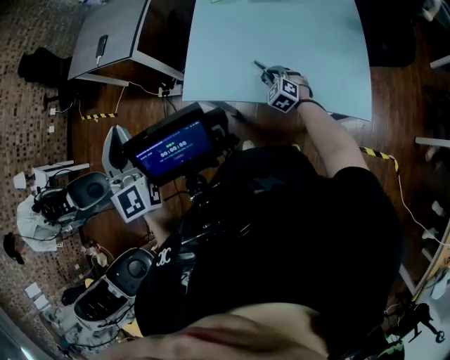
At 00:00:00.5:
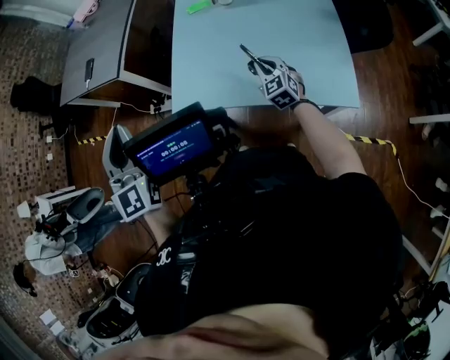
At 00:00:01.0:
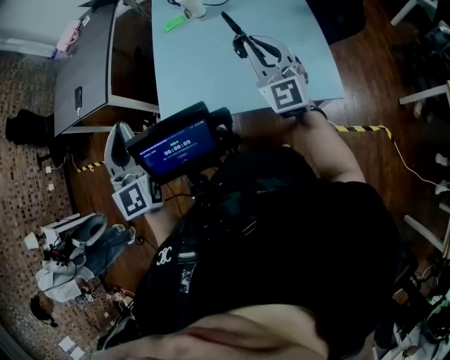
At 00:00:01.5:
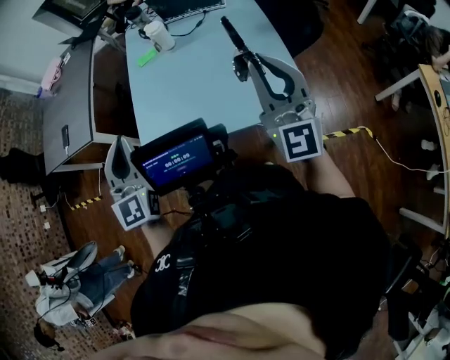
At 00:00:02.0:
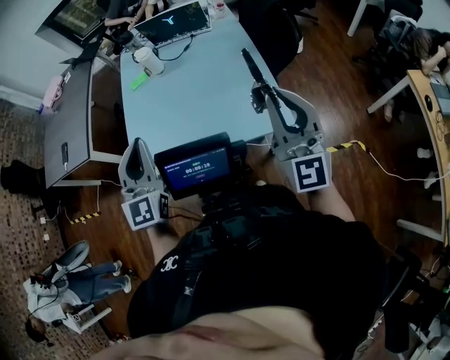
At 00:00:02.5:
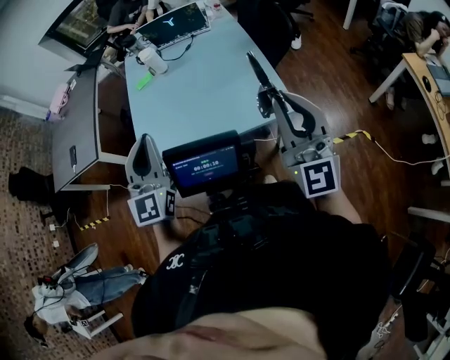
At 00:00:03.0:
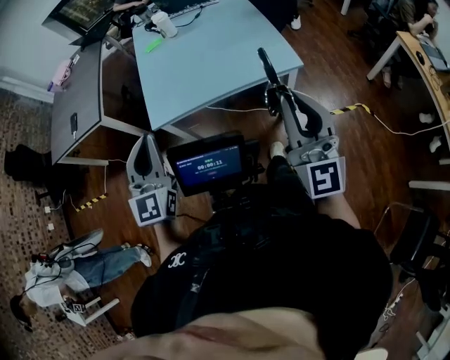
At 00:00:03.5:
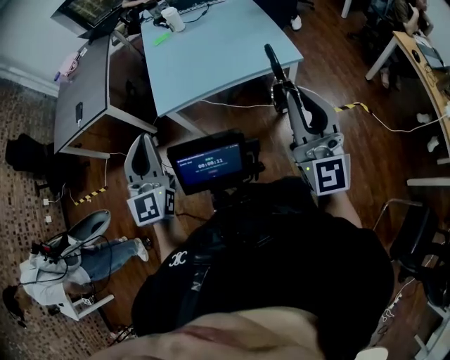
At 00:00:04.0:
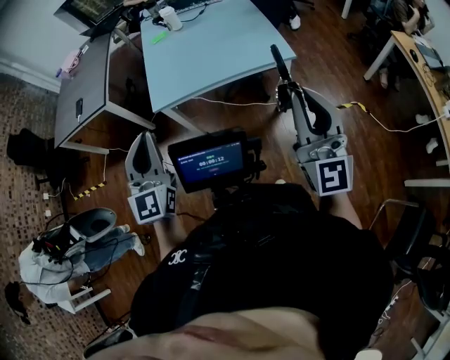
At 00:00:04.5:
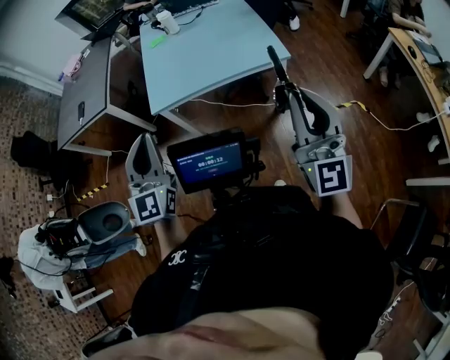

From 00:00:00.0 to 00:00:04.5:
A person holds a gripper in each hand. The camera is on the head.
From 00:00:00.0 to 00:00:02.0: The left gripper changes place by roughly 30 cm, and rotates some 30 degrees. The right gripper heads upward, covering approximately 40 cm, and tips its fingers upward by roughly 60 degrees.
From 00:00:02.0 to 00:00:04.5: Both grippers travel together backward, about 40 cm.

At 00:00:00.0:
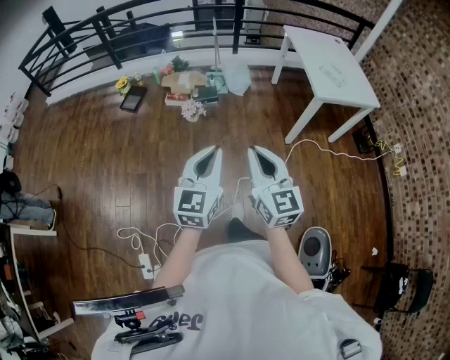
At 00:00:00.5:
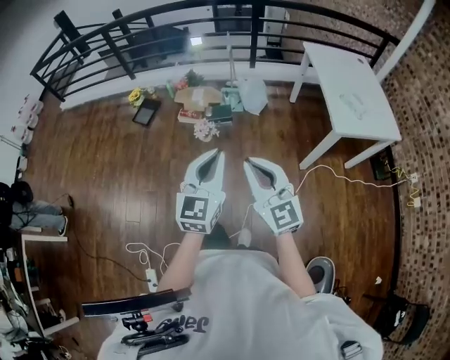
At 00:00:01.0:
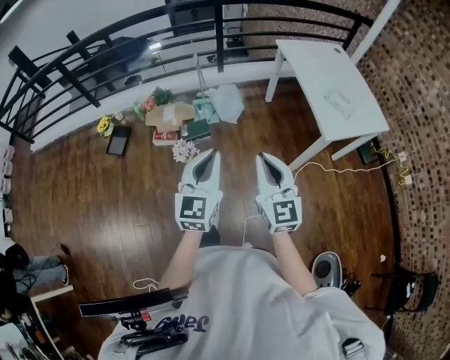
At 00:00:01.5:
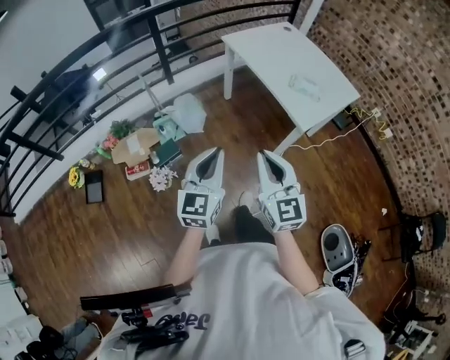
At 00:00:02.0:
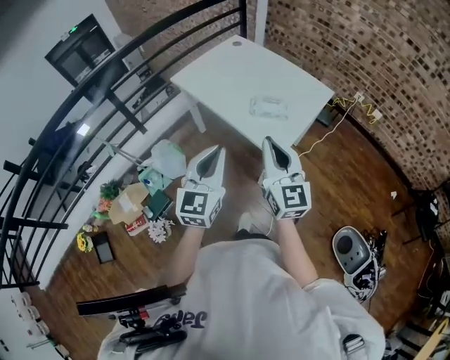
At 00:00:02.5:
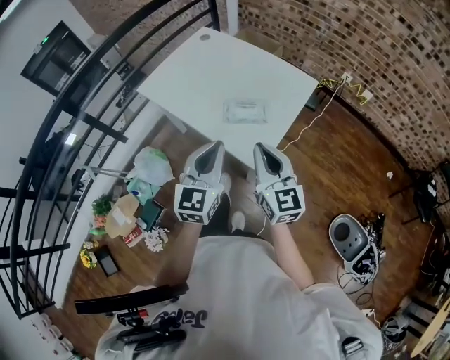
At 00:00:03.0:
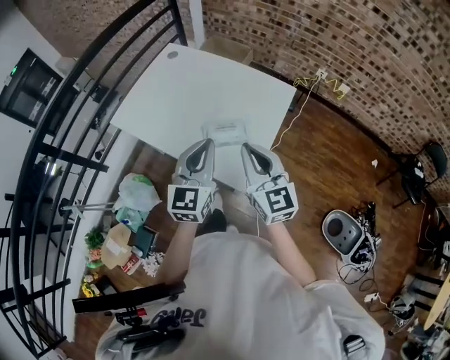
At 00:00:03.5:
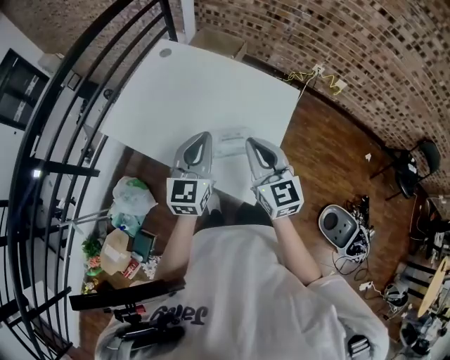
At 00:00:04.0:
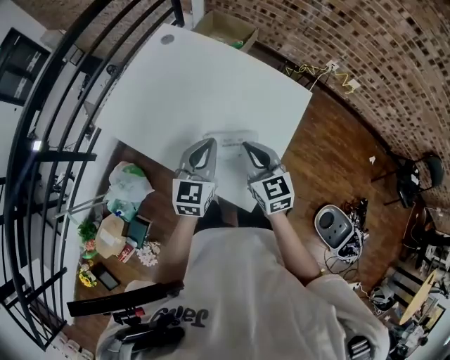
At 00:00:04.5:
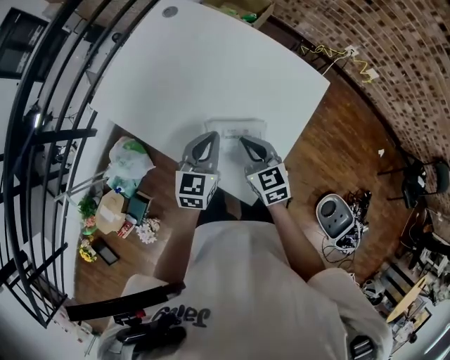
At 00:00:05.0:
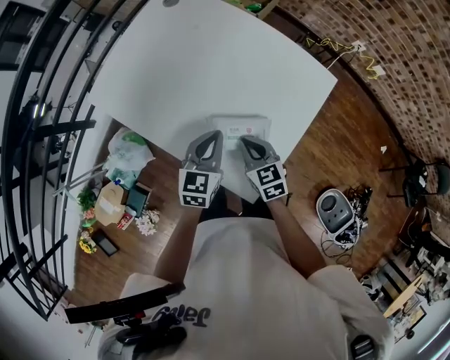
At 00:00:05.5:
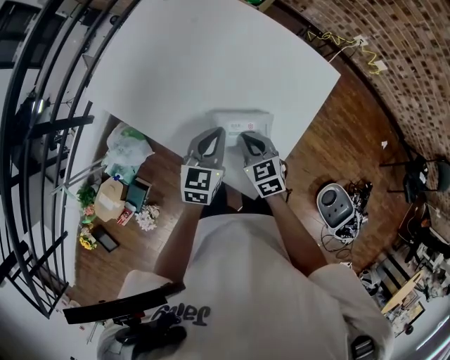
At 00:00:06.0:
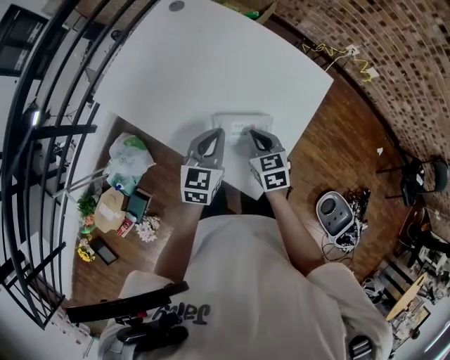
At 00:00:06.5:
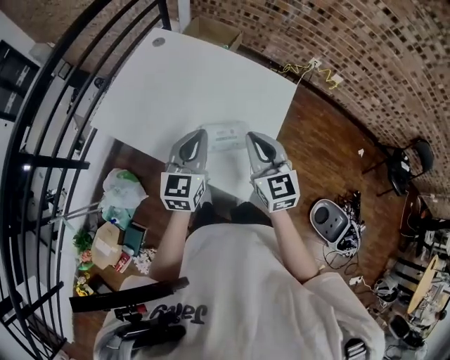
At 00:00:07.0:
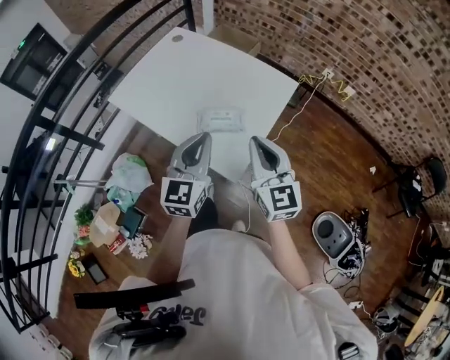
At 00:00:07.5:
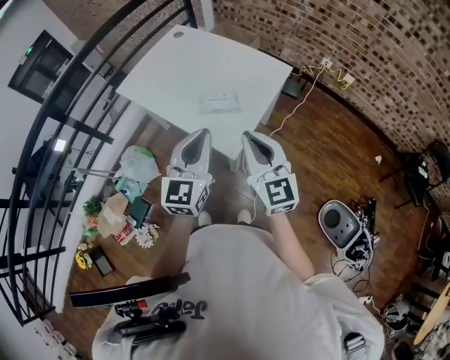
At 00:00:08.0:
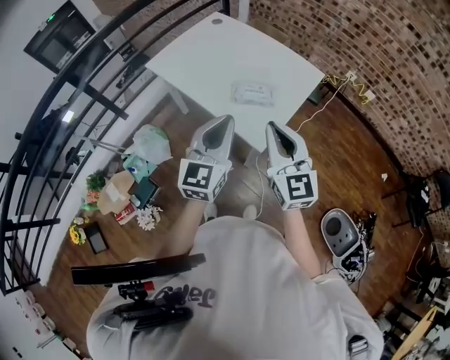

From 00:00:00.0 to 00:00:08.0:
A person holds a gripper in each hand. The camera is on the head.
From 00:00:00.0 to 00:00:02.0: Both grippers are carried roughly 70 cm. The left gripper turns by about 40 degrees. The right gripper changes its angle by about 50 degrees.
From 00:00:02.0 to 00:00:04.0: The left gripper heads forward, covering roughly 40 cm, and rotates about 20 degrees; the right gripper heads forward and downward, covering some 35 cm, and turns by some 30 degrees.
From 00:00:04.0 to 00:00:06.0: The right gripper travels downward by some 15 cm, and rotates roughly 20 degrees. The left gripper travels downward by approximately 10 cm.
From 00:00:06.0 to 00:00:08.0: The left gripper is displaced backward and upward by roughly 35 cm, and rotates some 30 degrees. Meanwhile the right gripper travels upward and backward by approximately 40 cm, and tips its fingers upward by about 40 degrees.

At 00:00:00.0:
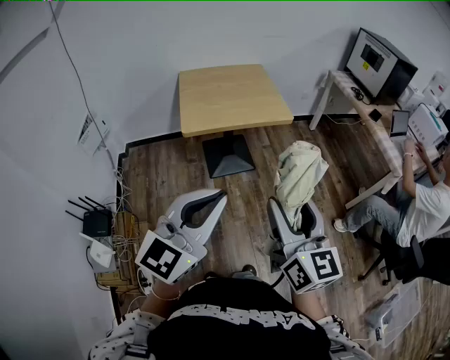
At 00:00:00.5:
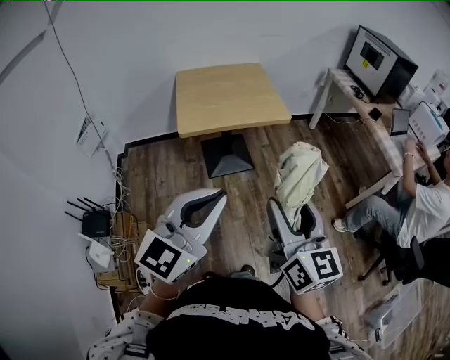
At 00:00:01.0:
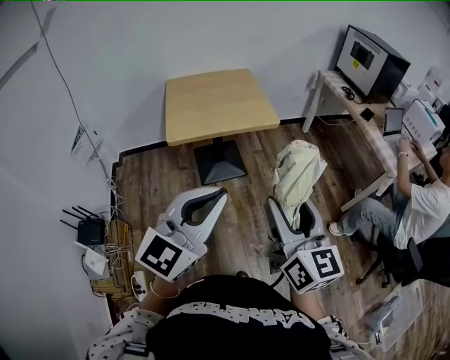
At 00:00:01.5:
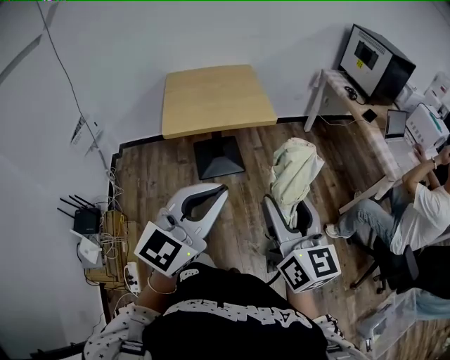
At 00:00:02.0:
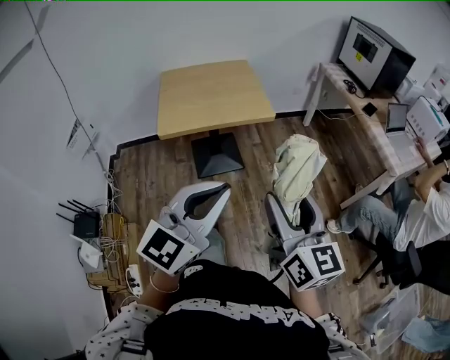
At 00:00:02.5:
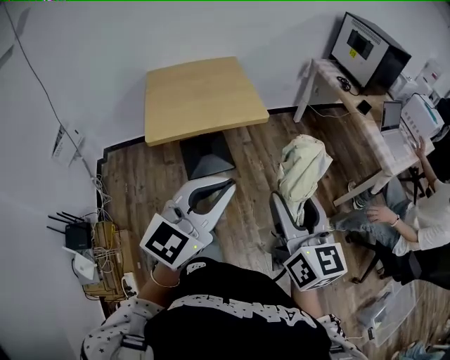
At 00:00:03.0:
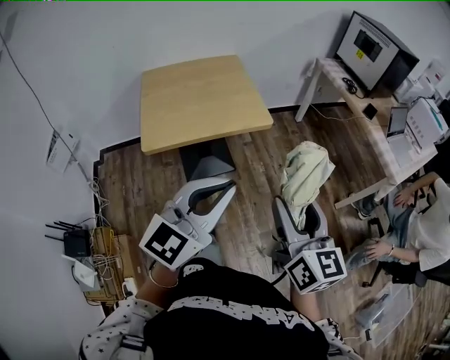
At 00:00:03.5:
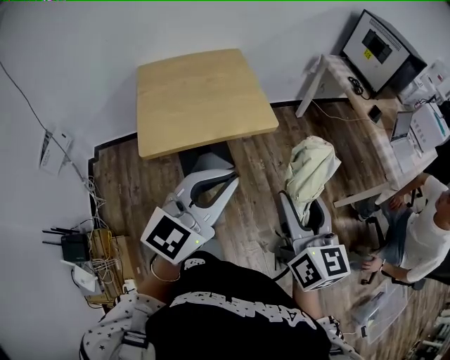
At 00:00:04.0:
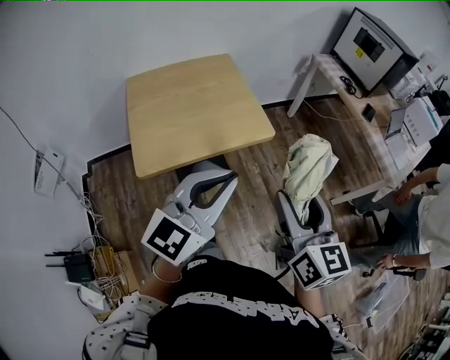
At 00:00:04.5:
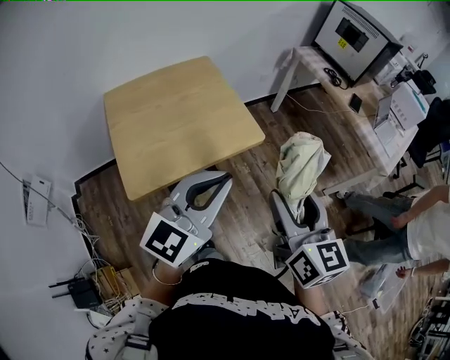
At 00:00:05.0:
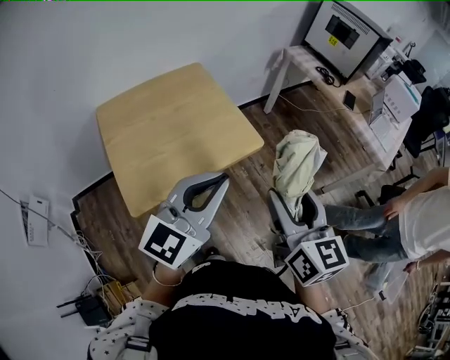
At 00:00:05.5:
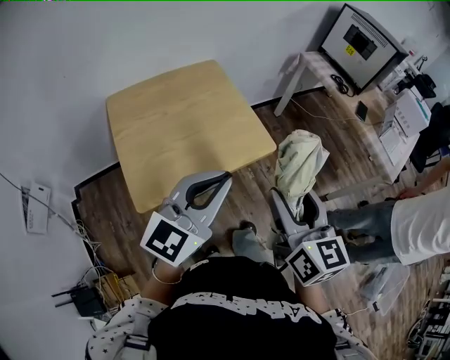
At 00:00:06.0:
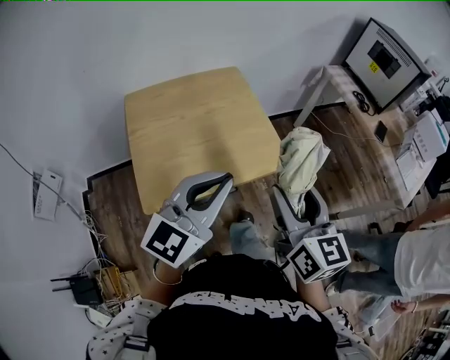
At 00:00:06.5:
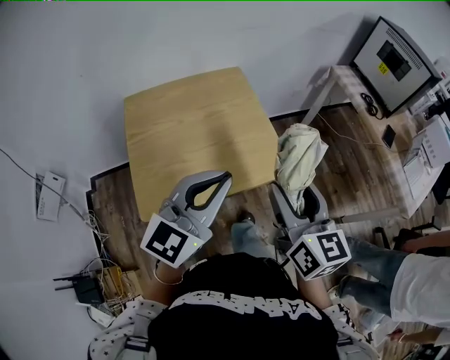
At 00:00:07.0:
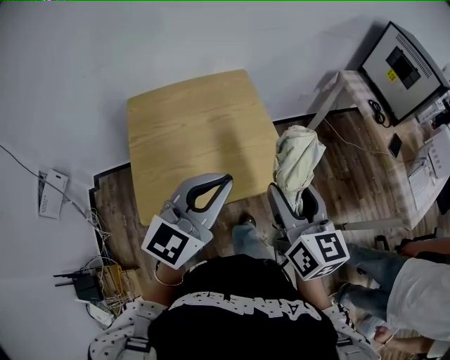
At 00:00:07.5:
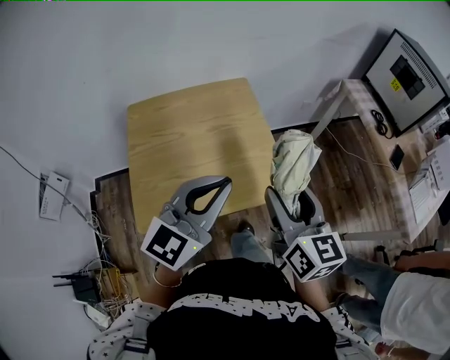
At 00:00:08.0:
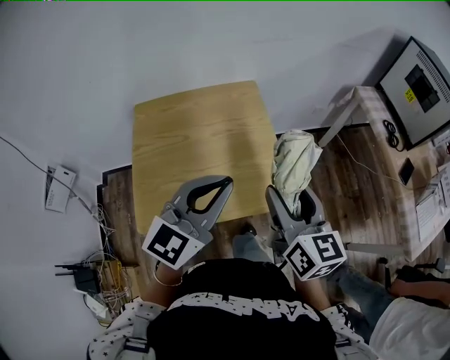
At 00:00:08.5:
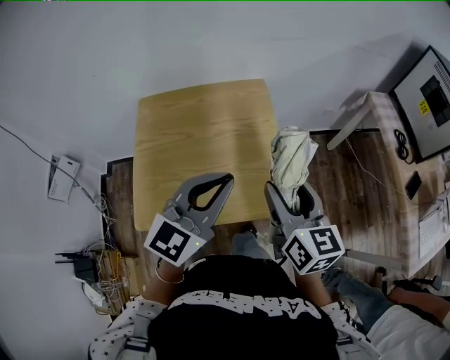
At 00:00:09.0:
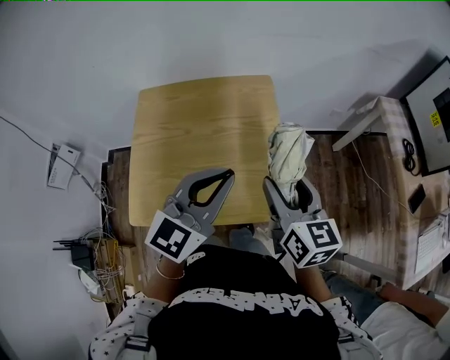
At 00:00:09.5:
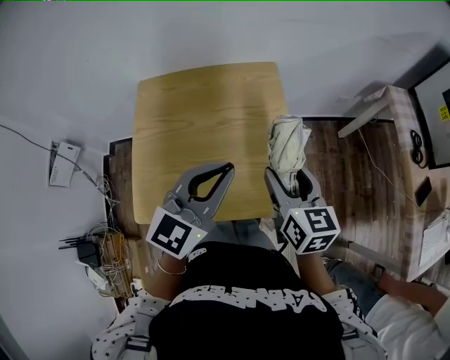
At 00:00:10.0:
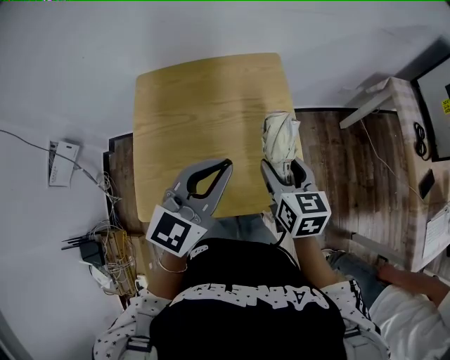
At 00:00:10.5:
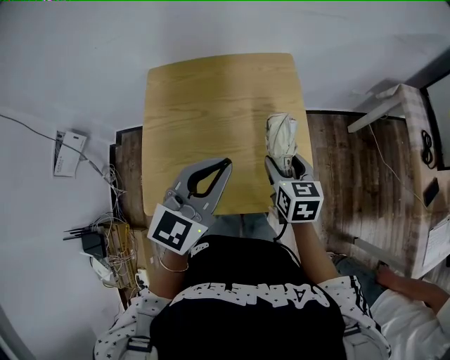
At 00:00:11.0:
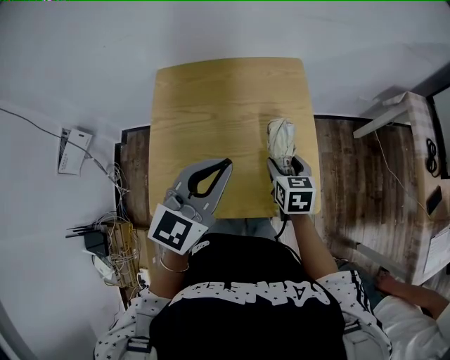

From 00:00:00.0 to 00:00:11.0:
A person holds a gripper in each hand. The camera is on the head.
From 00:00:00.0 to 00:00:02.0: The grippers both shift to the right and forward by roughly 15 cm.
From 00:00:02.0 to 00:00:03.5: The grippers both shift forward by approximately 20 cm.
From 00:00:03.5 to 00:00:05.5: The right gripper goes about 15 cm to the left and forward; the left gripper heads forward and to the left, covering approximately 15 cm.
From 00:00:05.5 to 00:00:07.5: The two grippers go some 15 cm forward.
From 00:00:07.5 to 00:00:09.0: The right gripper travels forward and downward by approximately 15 cm. The left gripper is displaced forward by about 10 cm.
From 00:00:09.0 to 00:00:11.0: The left gripper heads to the left, covering approximately 10 cm. The right gripper goes approximately 20 cm downward, and rotates about 30 degrees.

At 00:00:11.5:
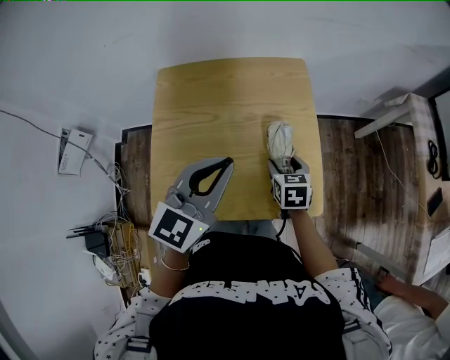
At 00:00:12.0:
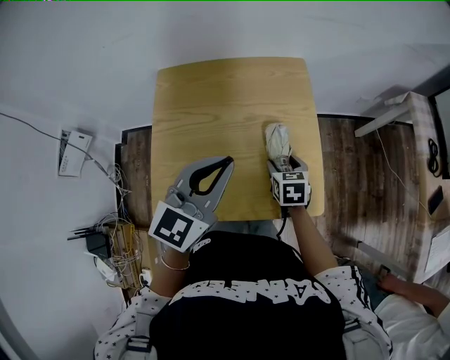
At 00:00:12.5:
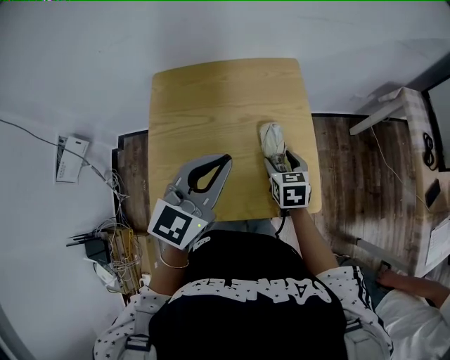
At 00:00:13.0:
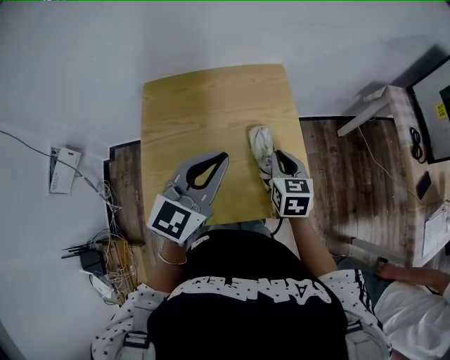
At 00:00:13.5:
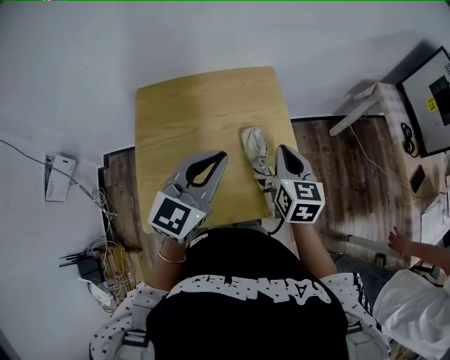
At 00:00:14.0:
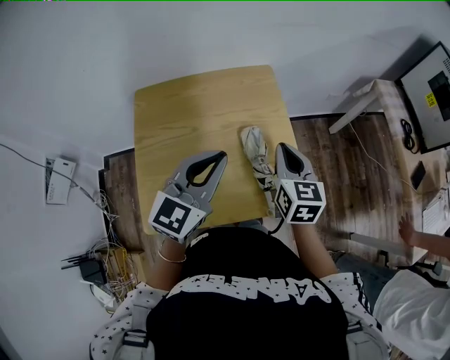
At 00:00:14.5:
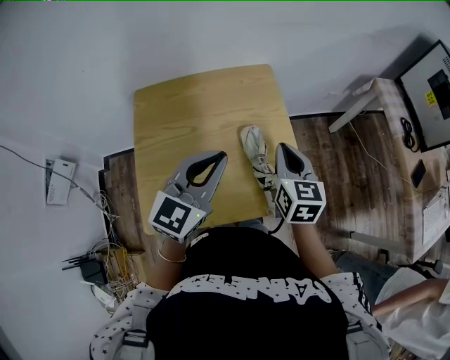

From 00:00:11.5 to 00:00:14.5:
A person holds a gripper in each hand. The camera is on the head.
From 00:00:11.5 to 00:00:13.0: The right gripper heads upward, covering about 10 cm, and closes up.
From 00:00:13.0 to 00:00:14.5: The right gripper is displaced upward by about 10 cm.
